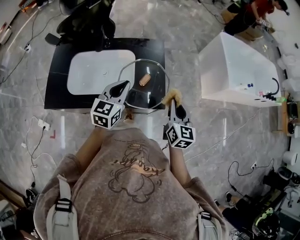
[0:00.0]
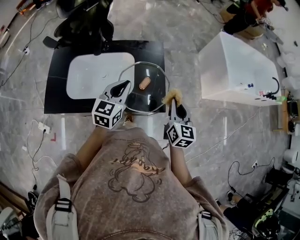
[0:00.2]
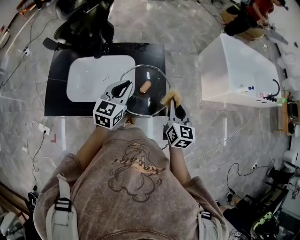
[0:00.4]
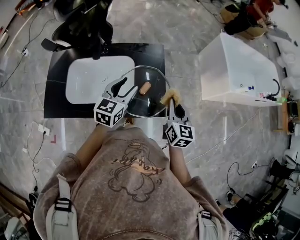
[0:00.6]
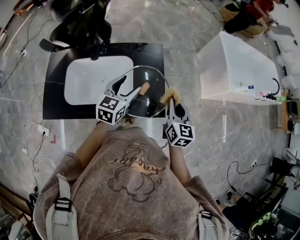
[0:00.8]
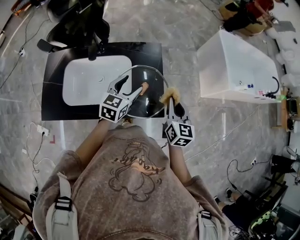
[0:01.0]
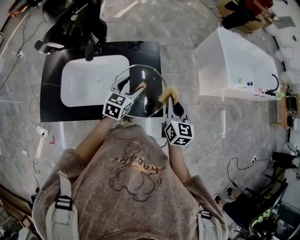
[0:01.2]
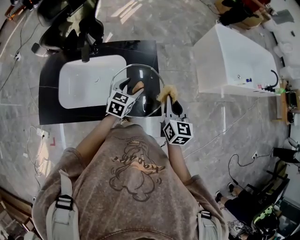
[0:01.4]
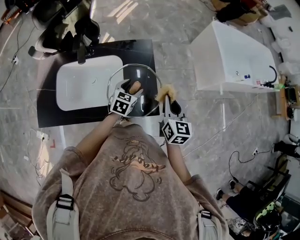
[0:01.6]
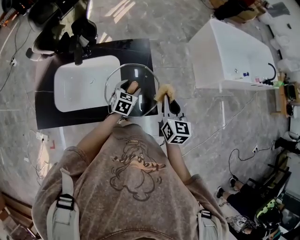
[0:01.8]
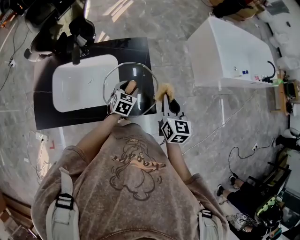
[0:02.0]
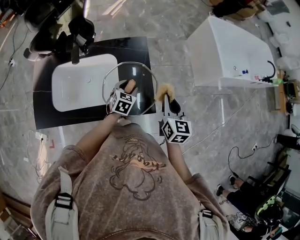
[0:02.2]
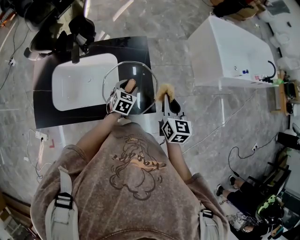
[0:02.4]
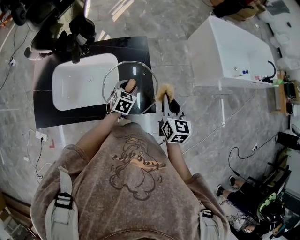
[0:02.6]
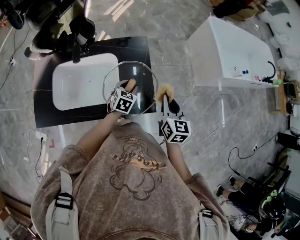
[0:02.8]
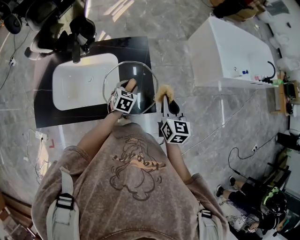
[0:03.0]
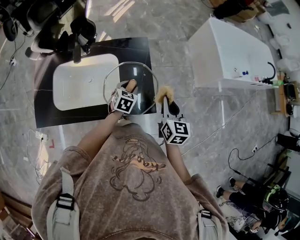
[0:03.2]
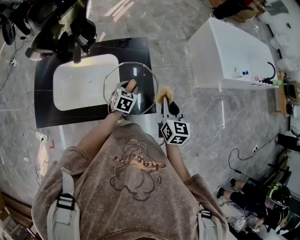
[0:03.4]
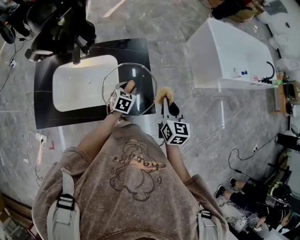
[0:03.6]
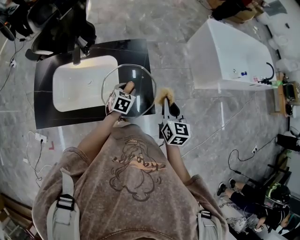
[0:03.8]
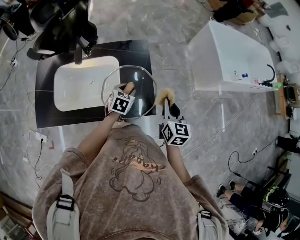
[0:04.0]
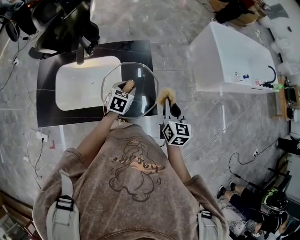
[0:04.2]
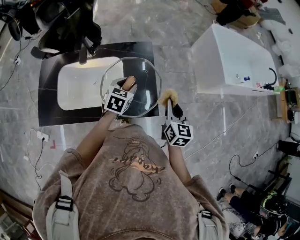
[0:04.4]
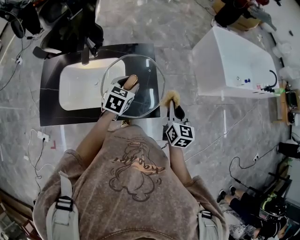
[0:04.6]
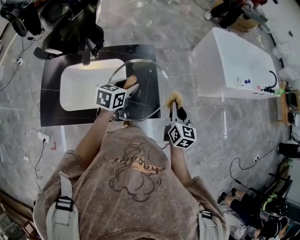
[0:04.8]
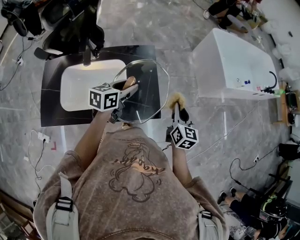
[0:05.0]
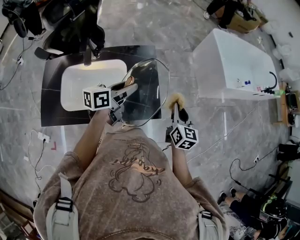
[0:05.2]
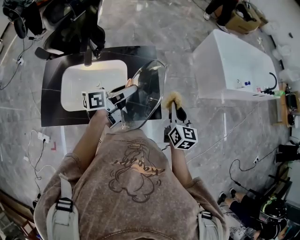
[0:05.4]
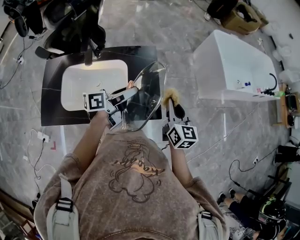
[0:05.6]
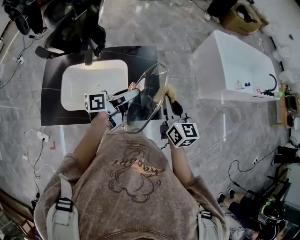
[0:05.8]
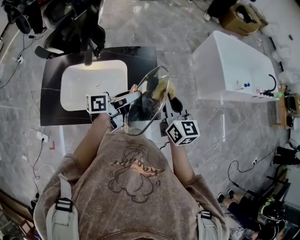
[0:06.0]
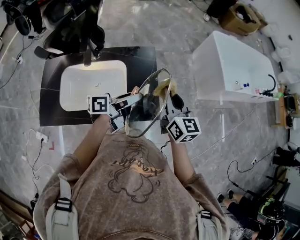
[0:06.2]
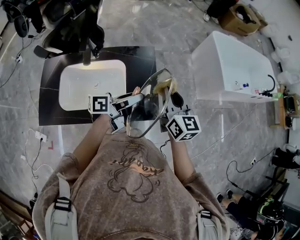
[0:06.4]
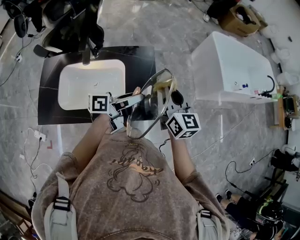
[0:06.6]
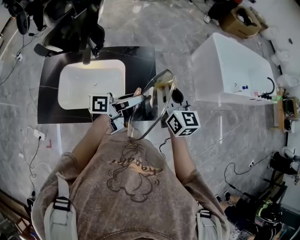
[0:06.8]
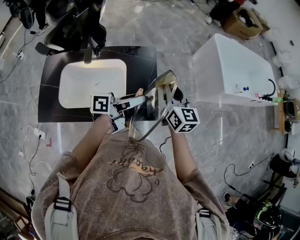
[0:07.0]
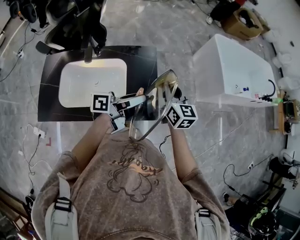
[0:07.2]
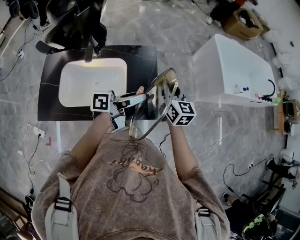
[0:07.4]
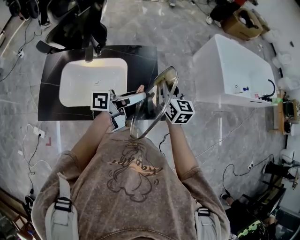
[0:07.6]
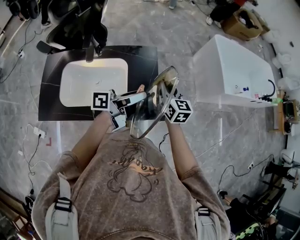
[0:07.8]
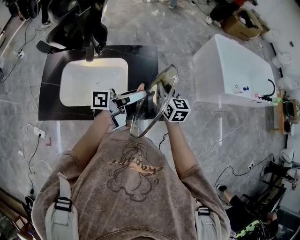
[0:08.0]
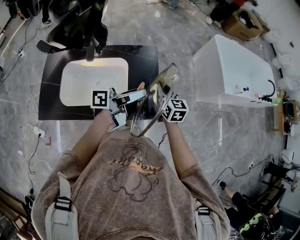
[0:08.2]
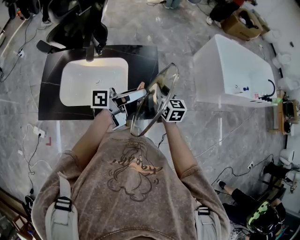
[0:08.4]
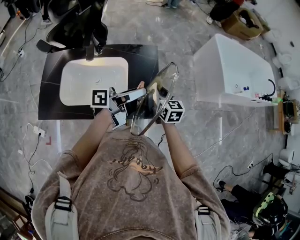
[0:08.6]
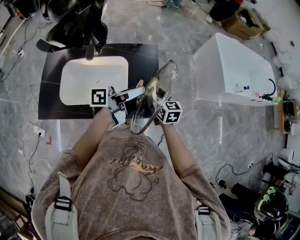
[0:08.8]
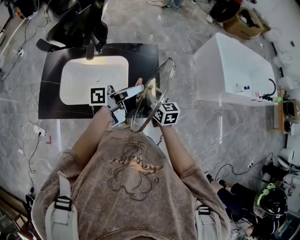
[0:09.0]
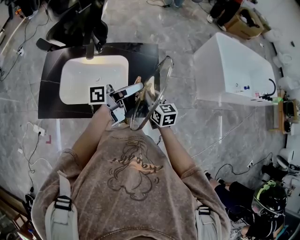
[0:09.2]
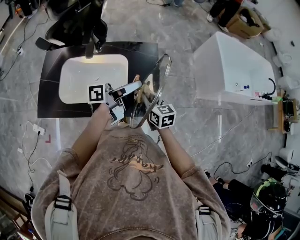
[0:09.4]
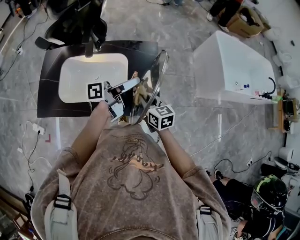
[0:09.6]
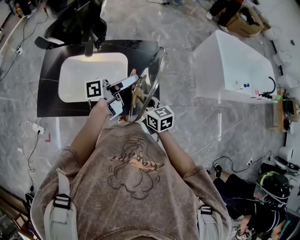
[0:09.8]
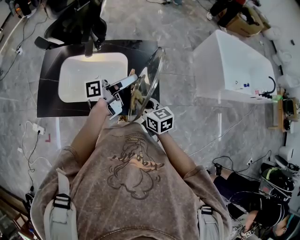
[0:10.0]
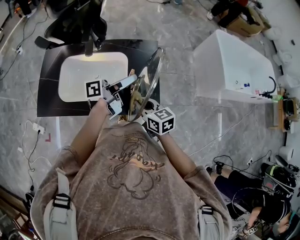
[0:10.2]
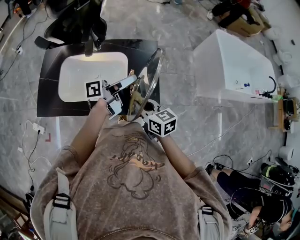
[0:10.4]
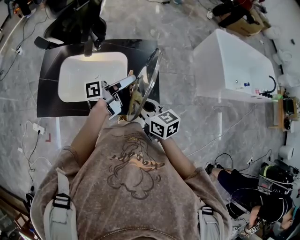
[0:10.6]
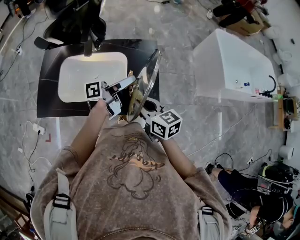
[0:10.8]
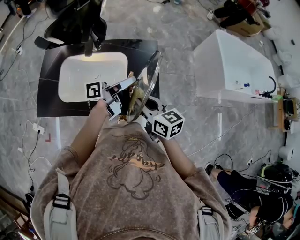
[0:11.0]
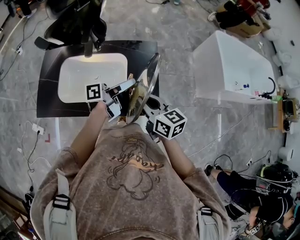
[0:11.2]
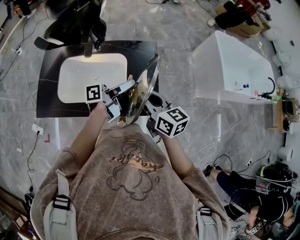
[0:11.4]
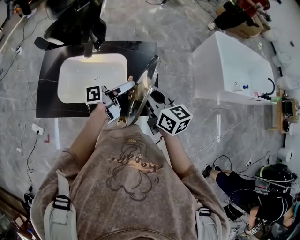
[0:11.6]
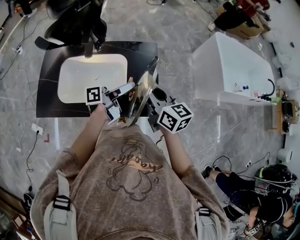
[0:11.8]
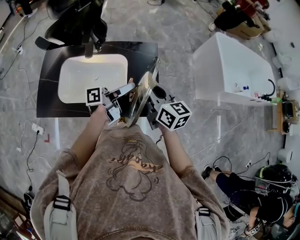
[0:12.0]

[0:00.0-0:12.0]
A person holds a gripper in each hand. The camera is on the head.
0:00.0 to 0:01.6: The right gripper moves forward, about 5 cm; the left gripper travels downward, forward and to the right by some 20 cm, turns by some 20 degrees, and opens up.
0:01.6 to 0:03.0: The left gripper closes up.
0:03.0 to 0:04.4: The left gripper moves upward, roughly 10 cm.
0:04.4 to 0:06.0: The left gripper goes some 10 cm upward, and tilts its fingers roughly 40 degrees upward. The right gripper goes roughly 10 cm upward and to the left.
0:06.0 to 0:07.6: The right gripper moves forward, approximately 5 cm.
0:07.6 to 0:09.0: The right gripper shifts some 10 cm downward and backward.
0:09.0 to 0:10.4: The right gripper heads backward, covering roughly 10 cm.
0:10.4 to 0:12.0: The right gripper is displaced upward and forward by some 10 cm.

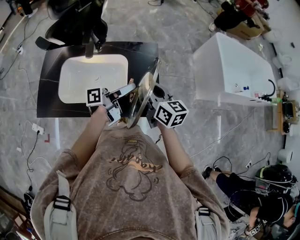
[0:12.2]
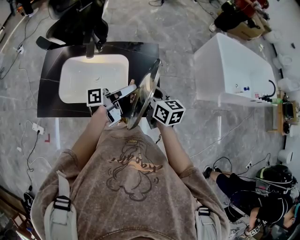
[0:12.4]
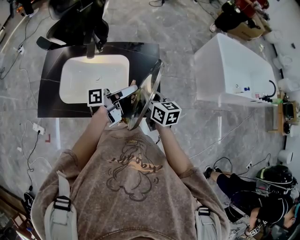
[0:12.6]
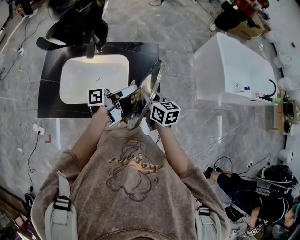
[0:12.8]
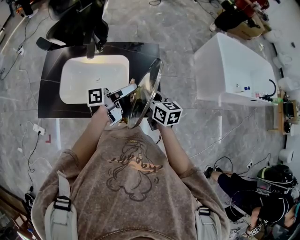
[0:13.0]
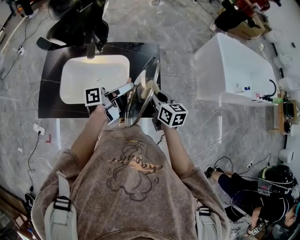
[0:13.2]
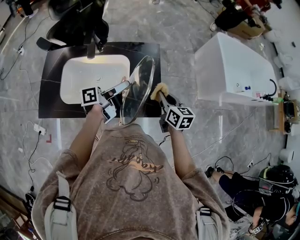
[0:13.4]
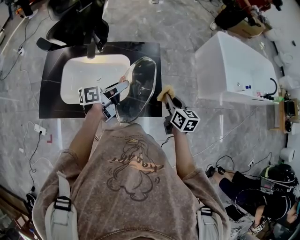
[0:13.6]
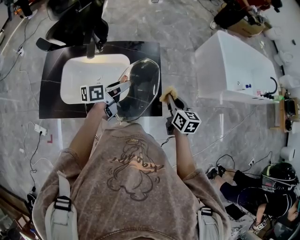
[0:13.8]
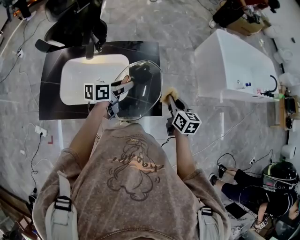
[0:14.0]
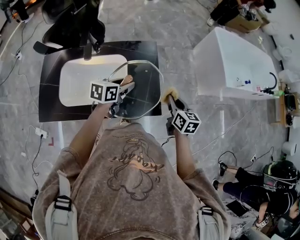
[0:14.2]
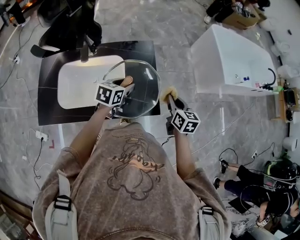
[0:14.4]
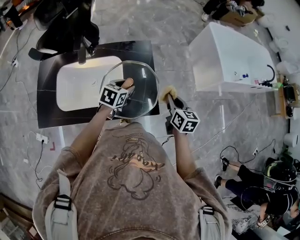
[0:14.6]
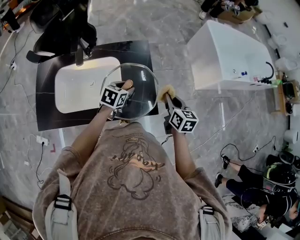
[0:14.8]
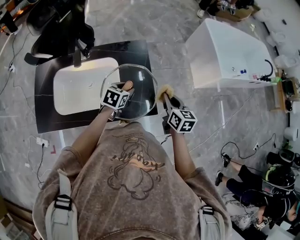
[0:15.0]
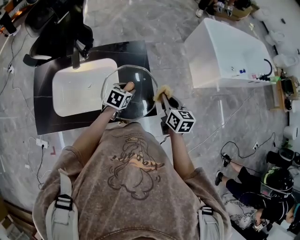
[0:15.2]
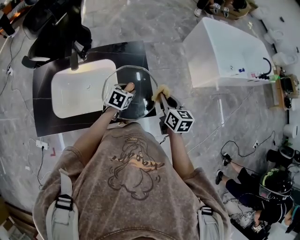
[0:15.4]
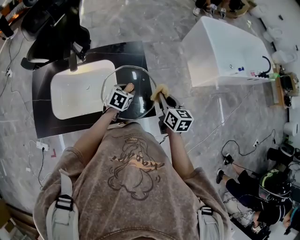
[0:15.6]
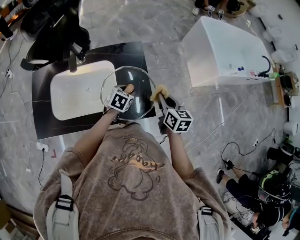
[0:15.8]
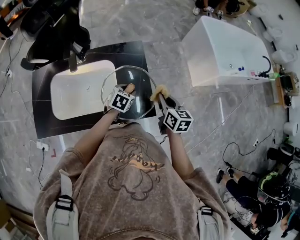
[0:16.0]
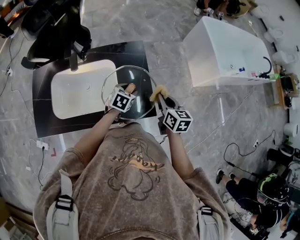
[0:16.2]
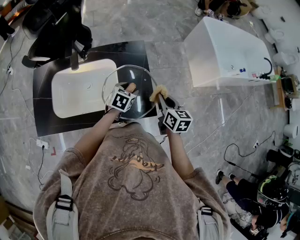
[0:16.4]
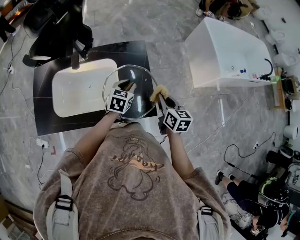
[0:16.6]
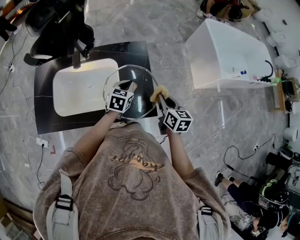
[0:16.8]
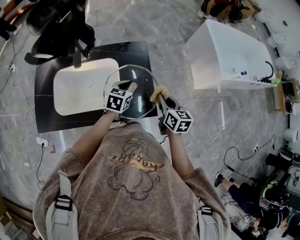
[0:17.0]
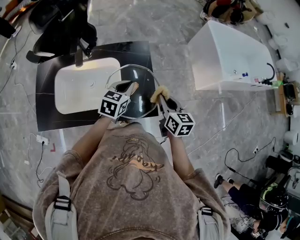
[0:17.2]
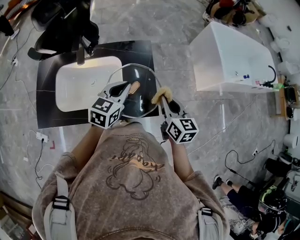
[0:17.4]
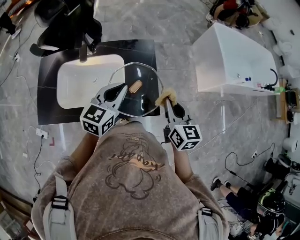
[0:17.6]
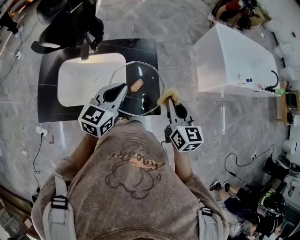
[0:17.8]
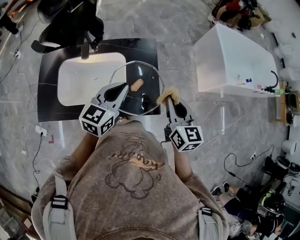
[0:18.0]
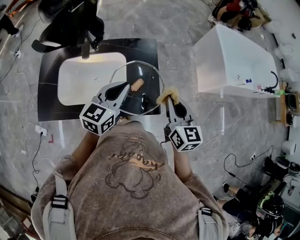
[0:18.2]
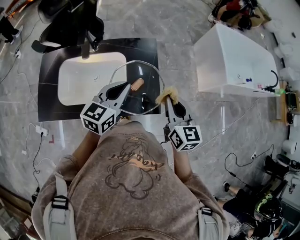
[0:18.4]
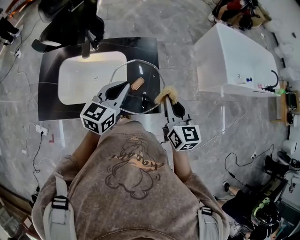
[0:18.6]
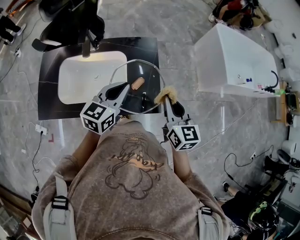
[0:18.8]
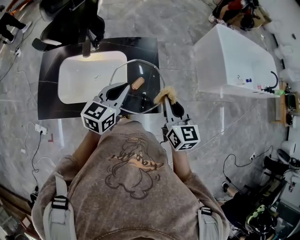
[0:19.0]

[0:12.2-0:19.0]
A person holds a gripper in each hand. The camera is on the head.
0:12.2 to 0:13.6: The right gripper shifts some 15 cm to the right and downward, while the left gripper shifts roughly 5 cm to the left, and changes its angle by roughly 30 degrees.
0:13.6 to 0:15.0: The left gripper moves downward and to the right, approximately 10 cm, and angles its fingers downward, by roughly 40 degrees.
0:15.0 to 0:16.2: There are only small adjustments of the grippers.
0:16.2 to 0:17.6: The right gripper is displaced upward by some 10 cm. The left gripper goes roughly 20 cm upward, angles its fingers upward, by some 30 degrees, and closes up.
0:17.6 to 0:19.0: The grippers move only a little.

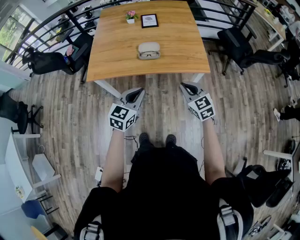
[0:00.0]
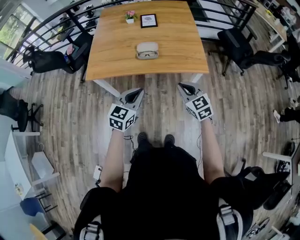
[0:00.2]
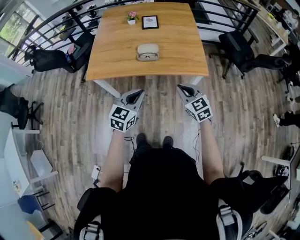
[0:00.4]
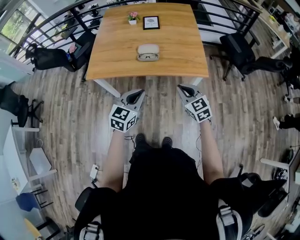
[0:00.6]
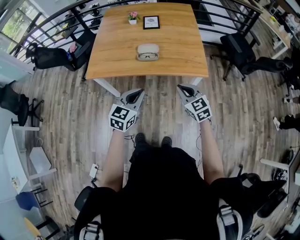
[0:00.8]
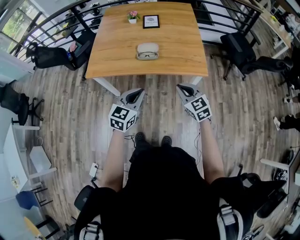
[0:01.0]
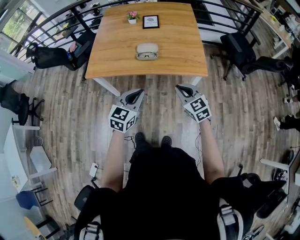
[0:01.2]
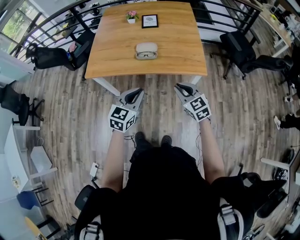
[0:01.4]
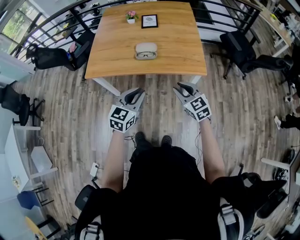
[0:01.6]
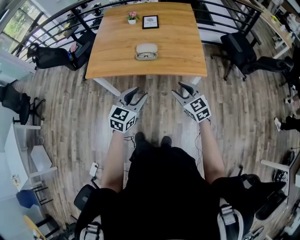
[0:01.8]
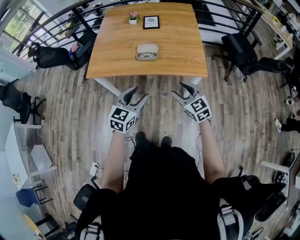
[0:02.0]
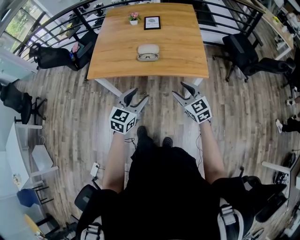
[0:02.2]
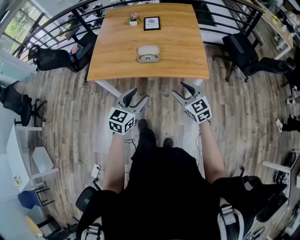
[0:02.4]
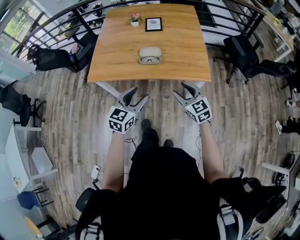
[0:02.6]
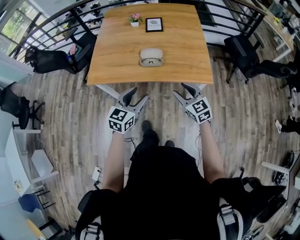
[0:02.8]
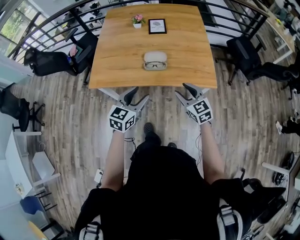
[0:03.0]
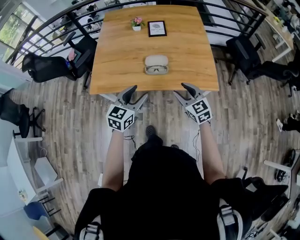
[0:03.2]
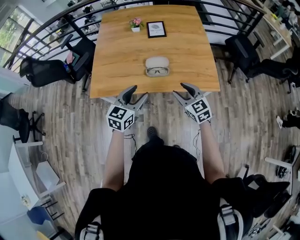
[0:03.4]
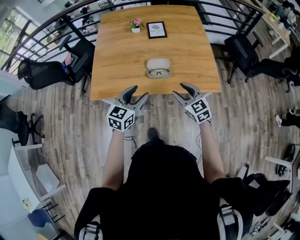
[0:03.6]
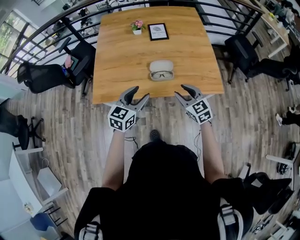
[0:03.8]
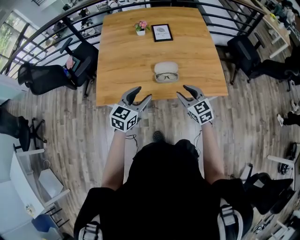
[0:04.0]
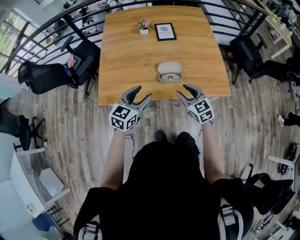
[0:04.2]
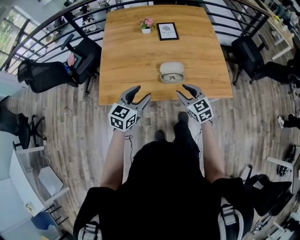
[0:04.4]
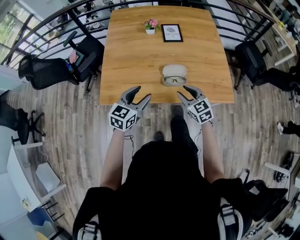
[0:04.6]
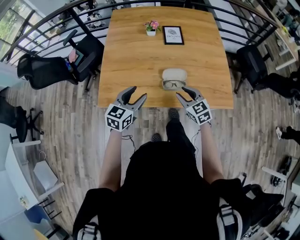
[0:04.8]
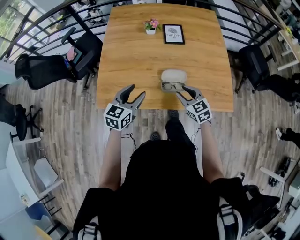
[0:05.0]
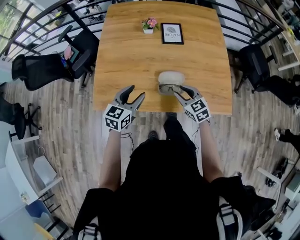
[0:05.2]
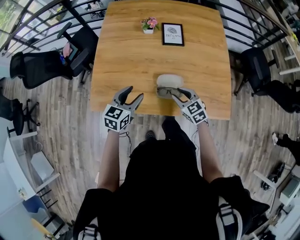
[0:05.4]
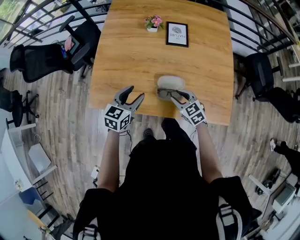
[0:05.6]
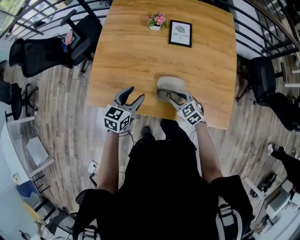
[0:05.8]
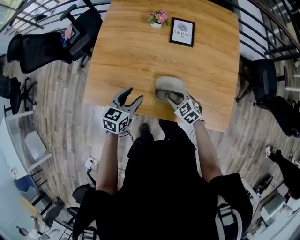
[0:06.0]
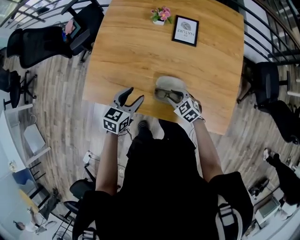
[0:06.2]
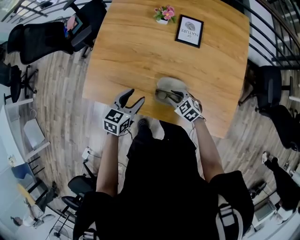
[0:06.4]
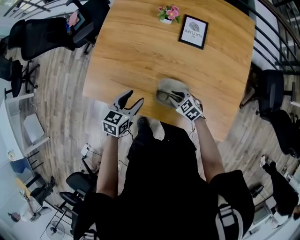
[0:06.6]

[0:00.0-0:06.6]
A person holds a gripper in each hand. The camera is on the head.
0:00.0 to 0:01.6: The left gripper moves to the right, about 5 cm. The right gripper opens.
0:01.6 to 0:03.2: Both grippers move forward and to the left, approximately 15 cm. The right gripper opens up. The left gripper opens.
0:03.2 to 0:05.0: The right gripper heads forward, to the left and downward, covering some 20 cm; the left gripper is displaced forward and to the left by approximately 20 cm.
0:05.0 to 0:06.6: Both grippers travel together downward, roughly 15 cm. The right gripper changes its angle by some 40 degrees; the left gripper changes its angle by roughly 20 degrees.
